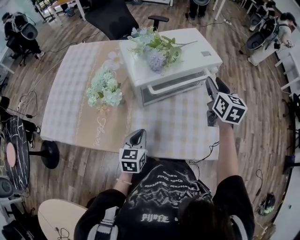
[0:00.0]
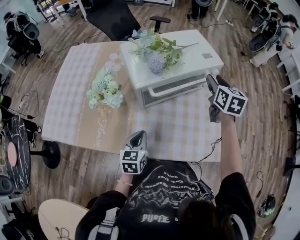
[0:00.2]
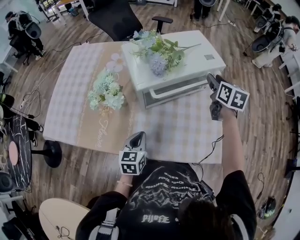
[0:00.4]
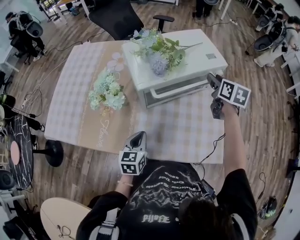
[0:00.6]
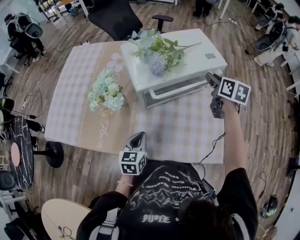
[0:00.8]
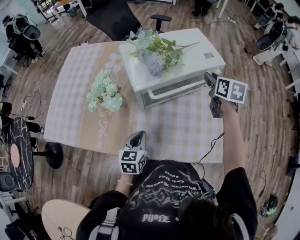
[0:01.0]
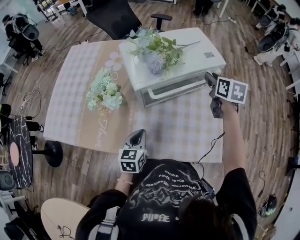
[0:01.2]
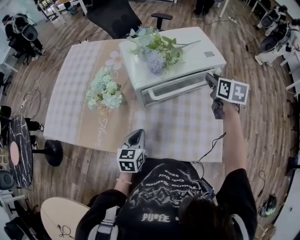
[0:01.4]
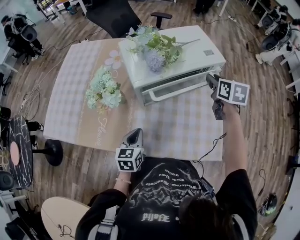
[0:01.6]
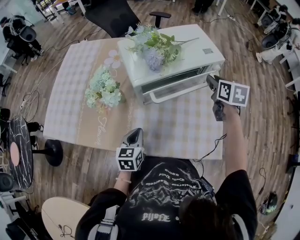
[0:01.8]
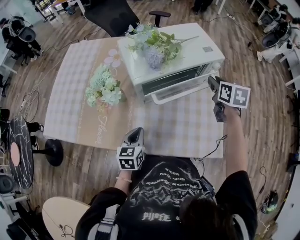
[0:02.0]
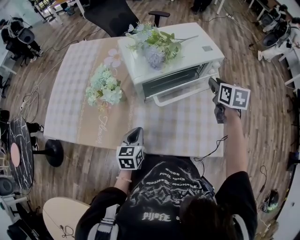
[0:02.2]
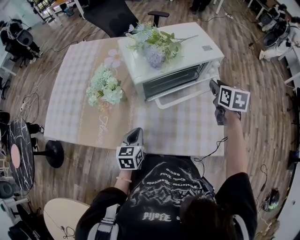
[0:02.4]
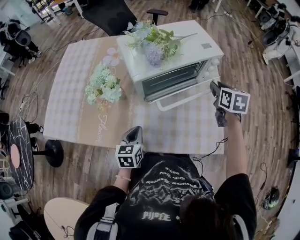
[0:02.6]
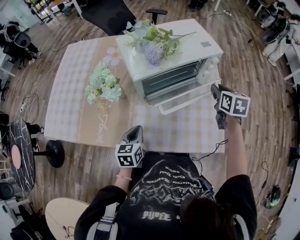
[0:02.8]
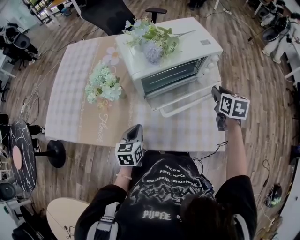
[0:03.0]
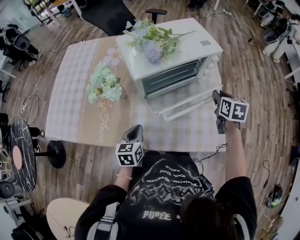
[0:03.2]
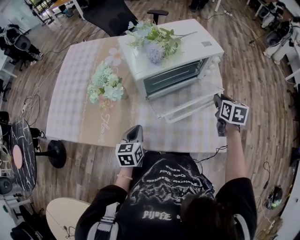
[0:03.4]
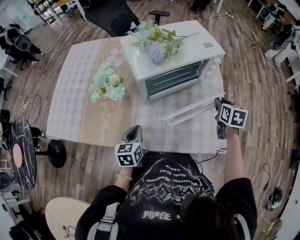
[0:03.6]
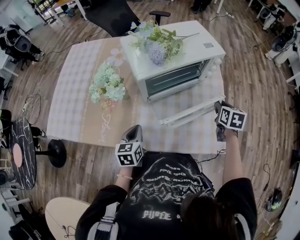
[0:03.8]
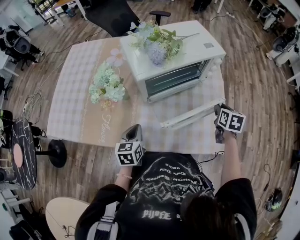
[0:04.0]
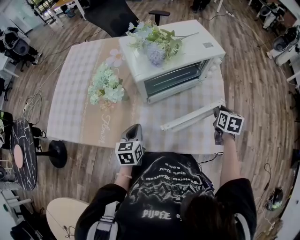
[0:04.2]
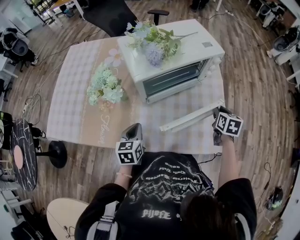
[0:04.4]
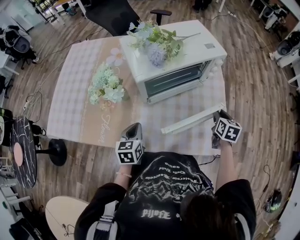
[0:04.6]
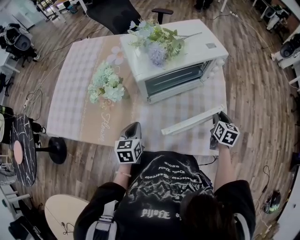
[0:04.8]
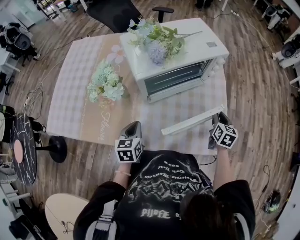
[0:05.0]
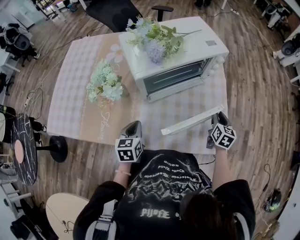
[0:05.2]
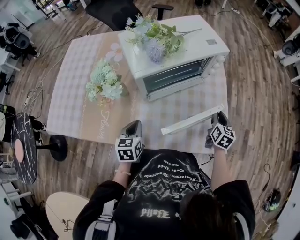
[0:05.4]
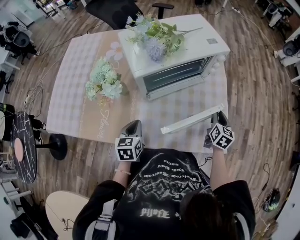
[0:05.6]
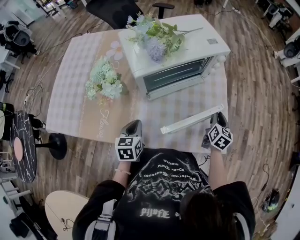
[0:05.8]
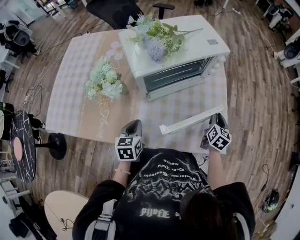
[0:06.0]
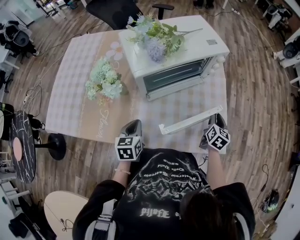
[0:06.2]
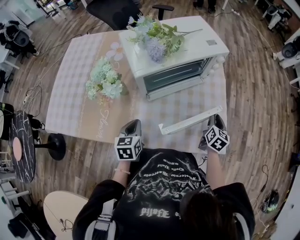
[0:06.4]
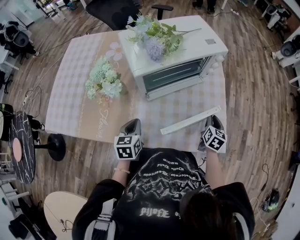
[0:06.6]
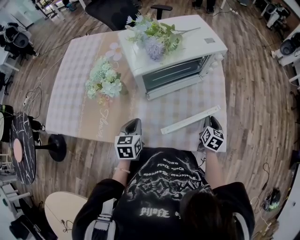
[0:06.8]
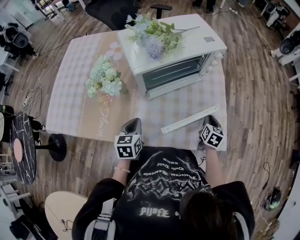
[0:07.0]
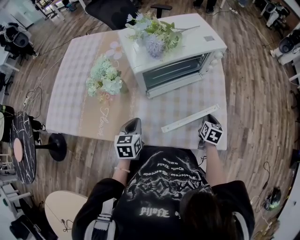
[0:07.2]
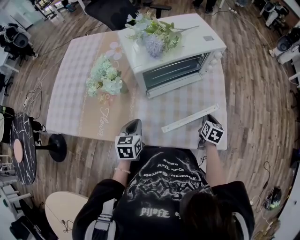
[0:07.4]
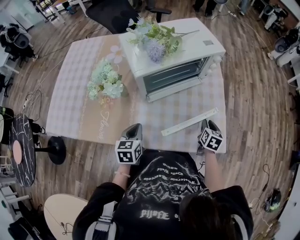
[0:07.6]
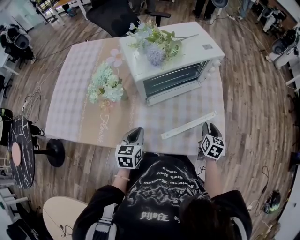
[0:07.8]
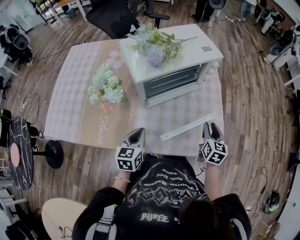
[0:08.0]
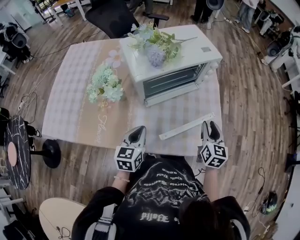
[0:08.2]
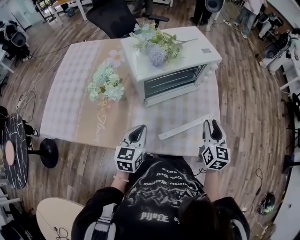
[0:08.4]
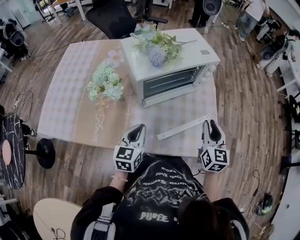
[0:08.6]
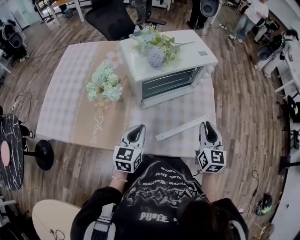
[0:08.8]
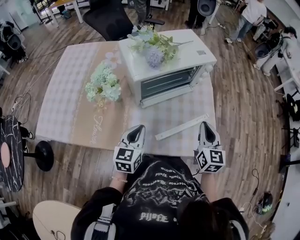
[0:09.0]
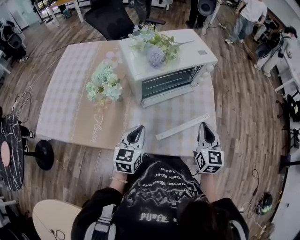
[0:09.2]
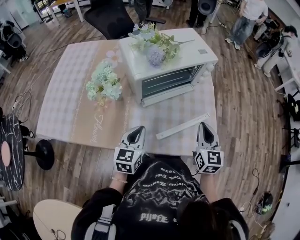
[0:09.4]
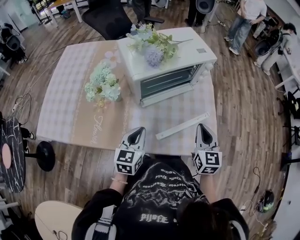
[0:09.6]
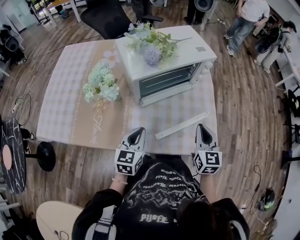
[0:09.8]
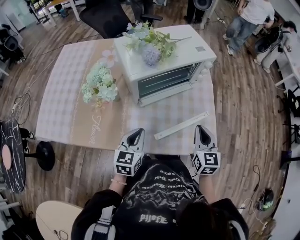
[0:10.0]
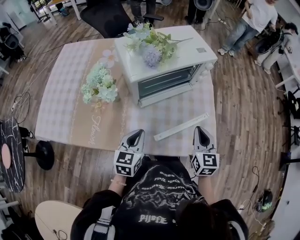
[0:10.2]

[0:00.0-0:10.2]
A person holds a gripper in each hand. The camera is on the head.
0:00.0 to 0:01.4: The right gripper is displaced forward by about 5 cm.
0:01.4 to 0:03.0: The right gripper heads backward and downward, covering about 10 cm.
0:03.0 to 0:04.4: The right gripper is displaced downward by approximately 10 cm.
0:04.4 to 0:05.8: There are only small adjustments of the grippers.
0:05.8 to 0:07.2: The right gripper is displaced downward by about 5 cm.
0:07.2 to 0:08.8: The left gripper travels upward by roughly 5 cm, and swivels some 20 degrees, while the right gripper is displaced upward by roughly 20 cm, and turns by approximately 30 degrees.
0:08.8 to 0:10.2: There are only small adjustments of the grippers.

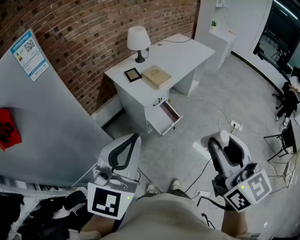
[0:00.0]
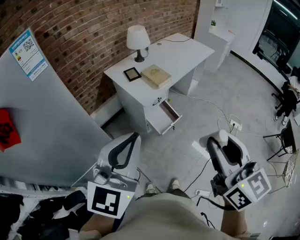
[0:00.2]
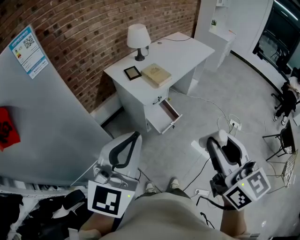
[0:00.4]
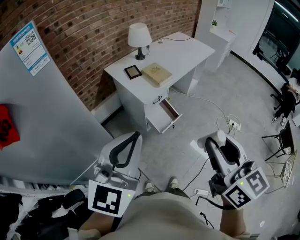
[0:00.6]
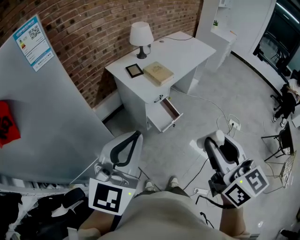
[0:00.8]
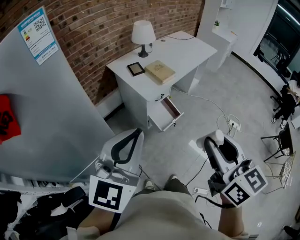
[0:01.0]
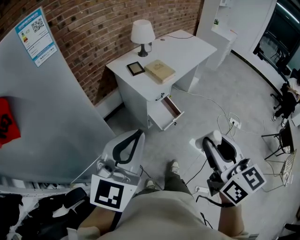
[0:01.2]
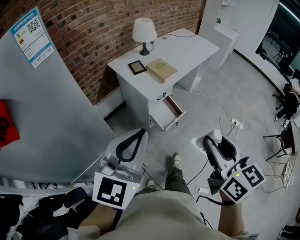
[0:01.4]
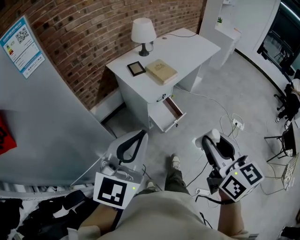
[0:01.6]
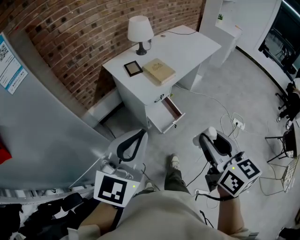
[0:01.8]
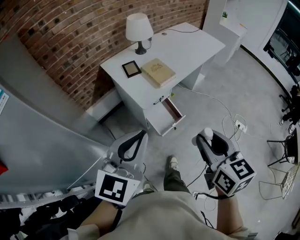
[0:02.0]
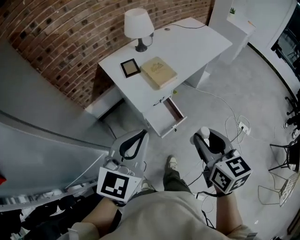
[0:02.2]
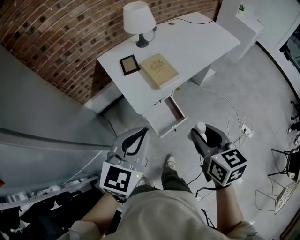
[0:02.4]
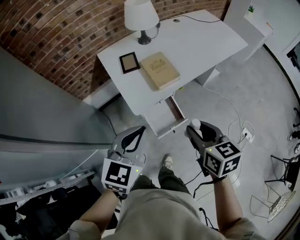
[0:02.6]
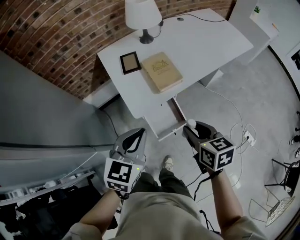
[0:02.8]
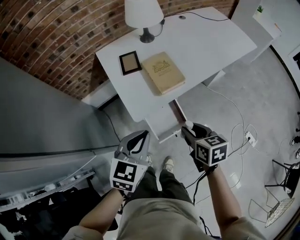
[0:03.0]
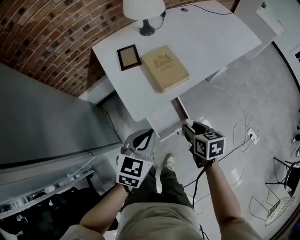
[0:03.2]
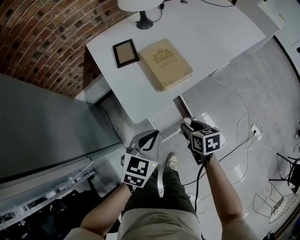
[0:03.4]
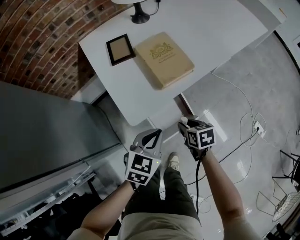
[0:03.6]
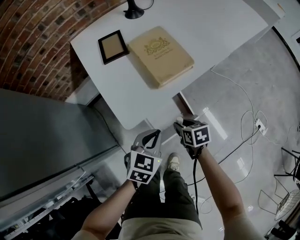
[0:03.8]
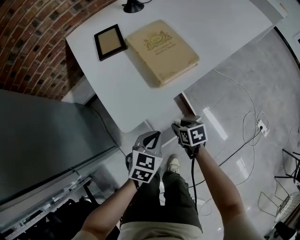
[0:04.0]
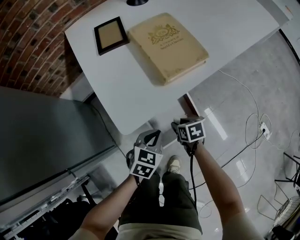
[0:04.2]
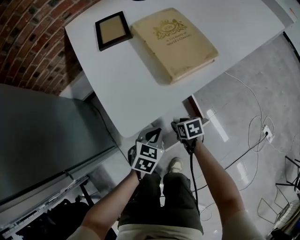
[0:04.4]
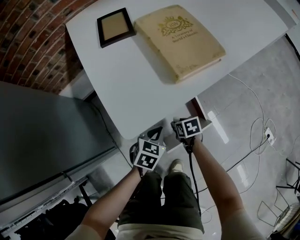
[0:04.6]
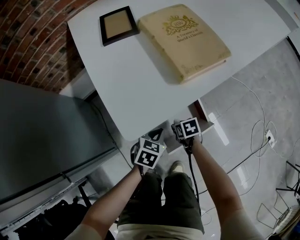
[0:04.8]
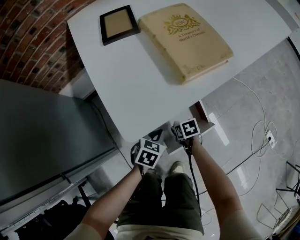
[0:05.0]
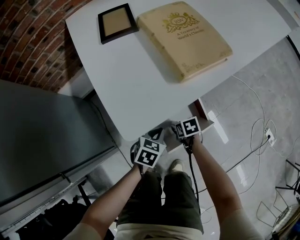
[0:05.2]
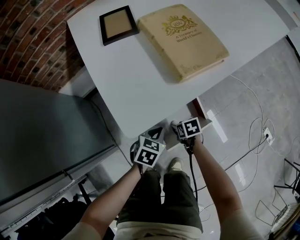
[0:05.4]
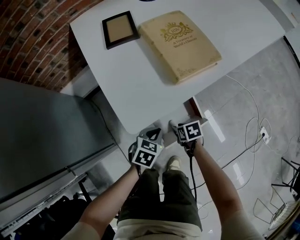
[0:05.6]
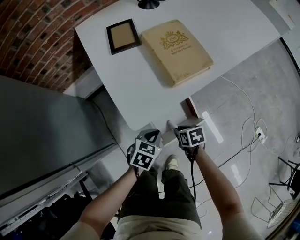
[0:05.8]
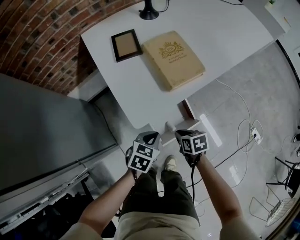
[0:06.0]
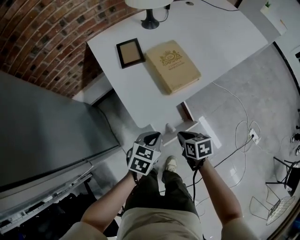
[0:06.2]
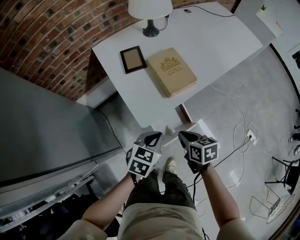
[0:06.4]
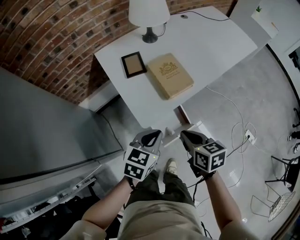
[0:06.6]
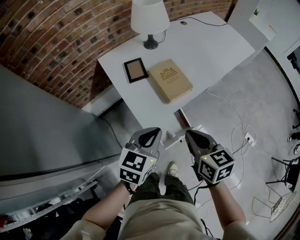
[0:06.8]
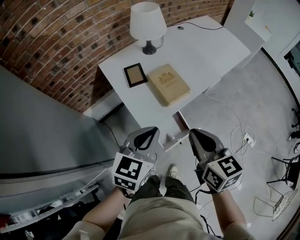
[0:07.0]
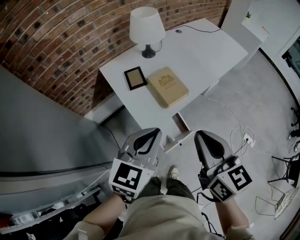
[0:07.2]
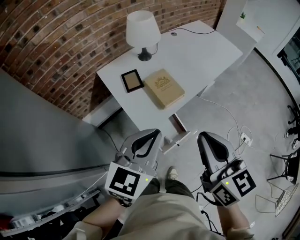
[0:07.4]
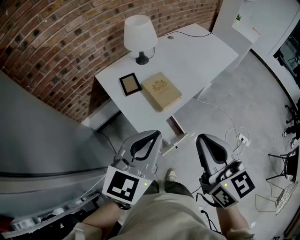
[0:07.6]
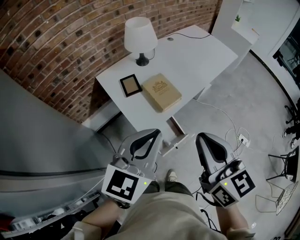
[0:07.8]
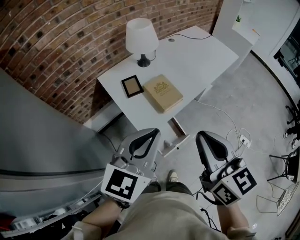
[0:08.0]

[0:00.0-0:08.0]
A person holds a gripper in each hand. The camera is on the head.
0:00.0 to 0:01.6: The left gripper heads downward, covering approximately 5 cm, while the right gripper heads downward and forward, covering some 10 cm.
0:01.6 to 0:03.2: The left gripper goes roughly 50 cm forward, downward and to the right, and changes its angle by some 30 degrees. Meanwhile the right gripper travels forward and downward by approximately 50 cm, and tips its fingers downward by approximately 30 degrees.
0:03.2 to 0:04.8: The grippers both shift downward by some 40 cm. The left gripper swivels roughly 20 degrees; the right gripper rotates about 20 degrees.
0:04.8 to 0:06.4: Both grippers travel together upward, roughly 35 cm. The right gripper rotates approximately 20 degrees, and closes up.
0:06.4 to 0:08.0: Both grippers move upward, roughly 40 cm. The right gripper tips its fingers upward by some 40 degrees. Meanwhile the left gripper changes its angle by some 30 degrees.

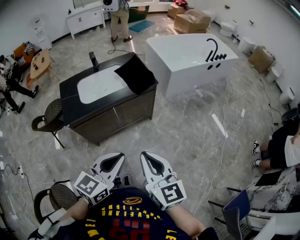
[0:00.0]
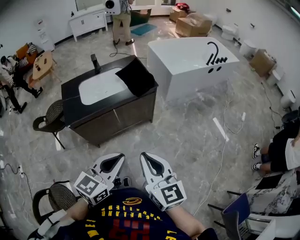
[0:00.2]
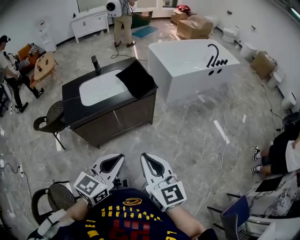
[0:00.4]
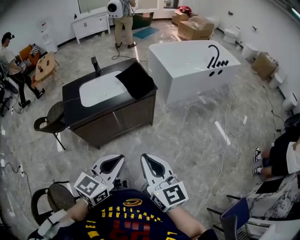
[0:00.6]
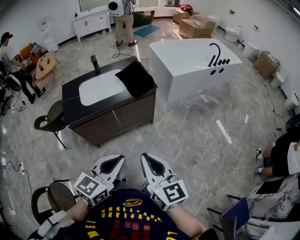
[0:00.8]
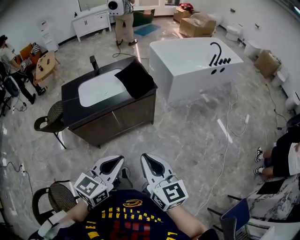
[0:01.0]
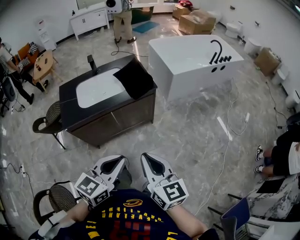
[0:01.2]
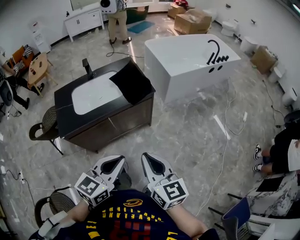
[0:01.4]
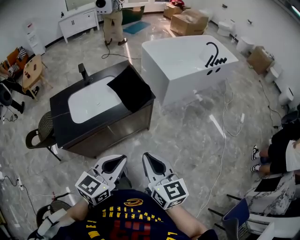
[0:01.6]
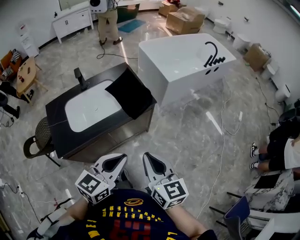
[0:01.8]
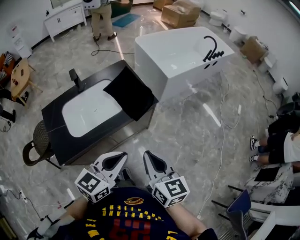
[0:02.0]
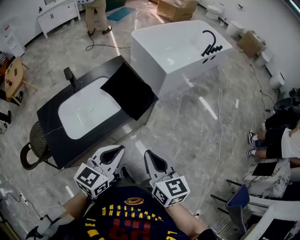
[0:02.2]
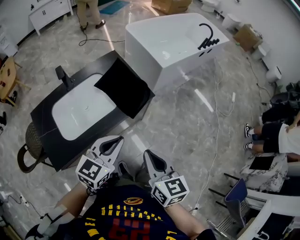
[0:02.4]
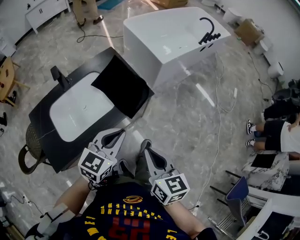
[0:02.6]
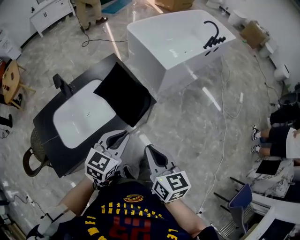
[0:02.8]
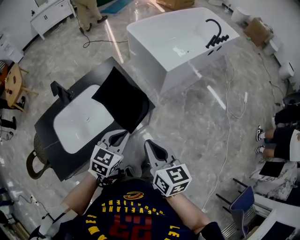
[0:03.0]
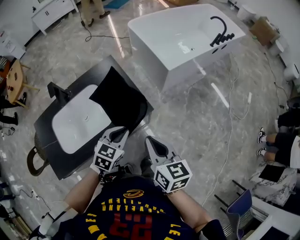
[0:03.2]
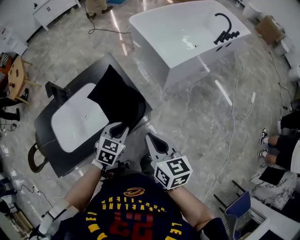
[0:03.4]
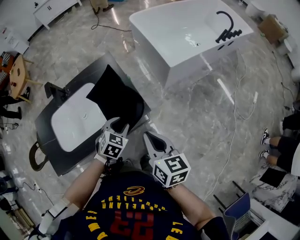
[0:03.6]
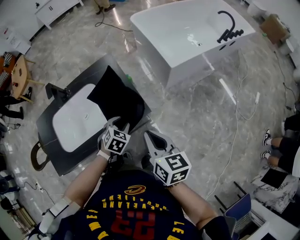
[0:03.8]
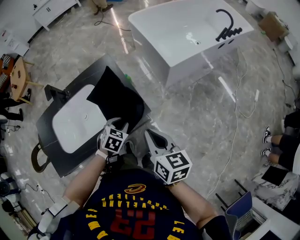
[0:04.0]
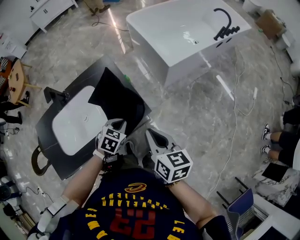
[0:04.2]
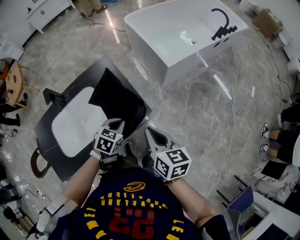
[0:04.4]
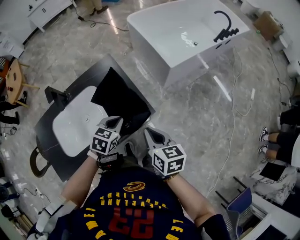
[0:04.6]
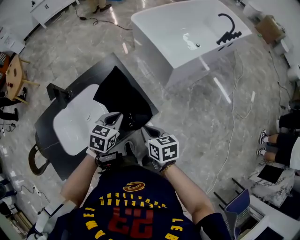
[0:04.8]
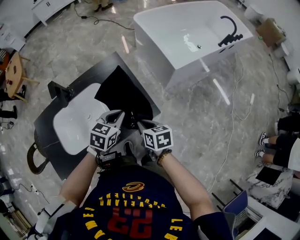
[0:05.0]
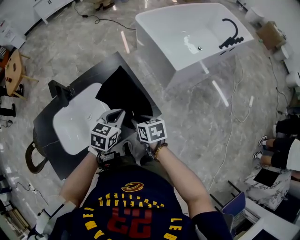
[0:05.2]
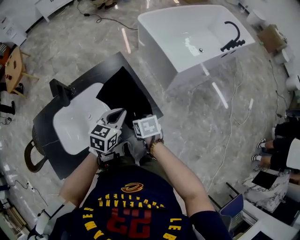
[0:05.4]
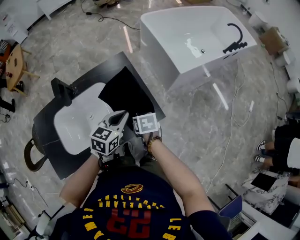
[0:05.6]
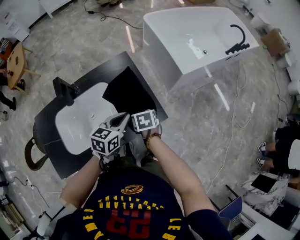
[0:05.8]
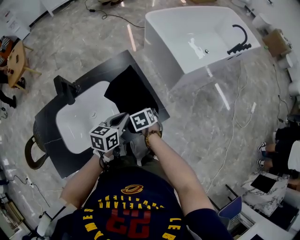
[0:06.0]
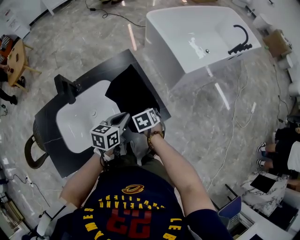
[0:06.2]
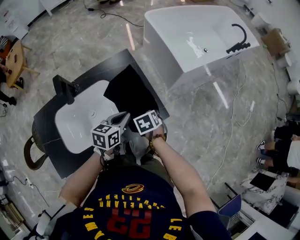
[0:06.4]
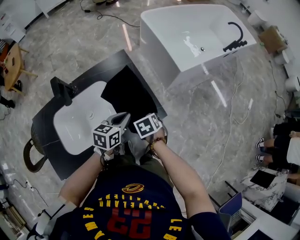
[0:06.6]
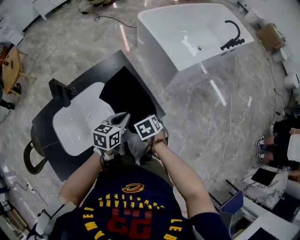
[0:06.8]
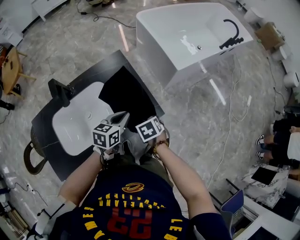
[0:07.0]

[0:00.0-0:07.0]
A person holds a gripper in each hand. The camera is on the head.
0:00.0 to 0:01.4: Both grippers travel together forward, roughly 10 cm.
0:01.4 to 0:02.8: Both grippers travel together forward, roughly 30 cm. The right gripper rotates some 20 degrees.
0:02.8 to 0:04.2: The right gripper is displaced forward and to the right by roughly 20 cm; the left gripper heads downward and forward, covering roughly 25 cm, points its fingers approximately 30 degrees further downward, and opens, then closes again.
0:04.2 to 0:05.6: The right gripper shifts approximately 25 cm downward, to the left and forward, tips its fingers downward by about 40 degrees, and opens up. Meanwhile the left gripper moves upward, to the left and forward, approximately 10 cm, and rotates some 30 degrees.
0:05.6 to 0:07.0: There are only small adjustments of the grippers.
